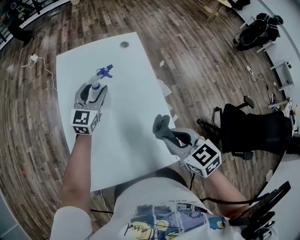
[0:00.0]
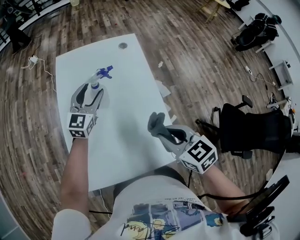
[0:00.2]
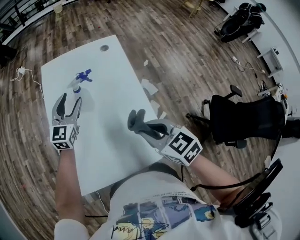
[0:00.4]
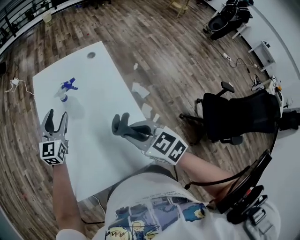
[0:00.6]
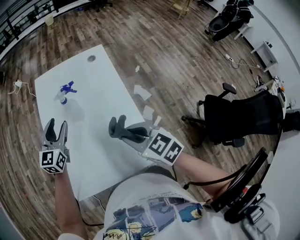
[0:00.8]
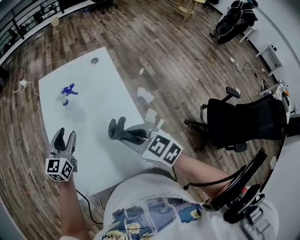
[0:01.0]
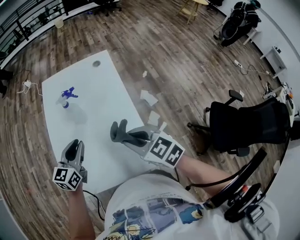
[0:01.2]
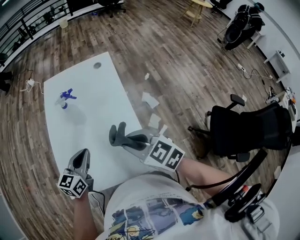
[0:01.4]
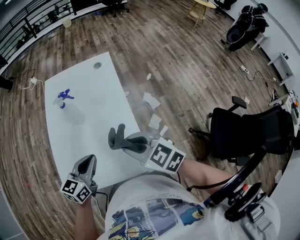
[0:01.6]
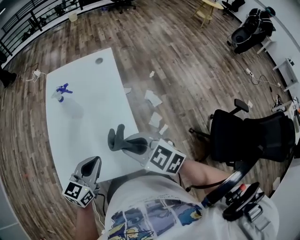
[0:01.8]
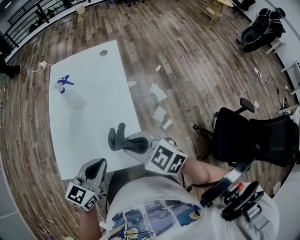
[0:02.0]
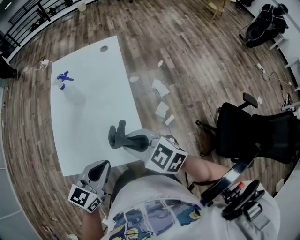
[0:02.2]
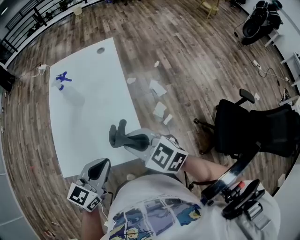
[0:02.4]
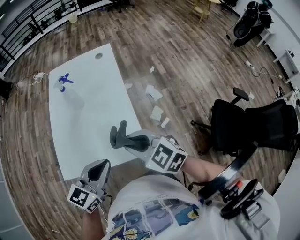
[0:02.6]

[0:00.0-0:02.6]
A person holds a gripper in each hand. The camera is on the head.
0:00.0 to 0:01.2: The left gripper goes some 20 cm backward, and closes up.
0:01.2 to 0:02.6: The right gripper heads backward, covering about 10 cm. The left gripper heads backward and to the right, covering approximately 25 cm, and closes up.

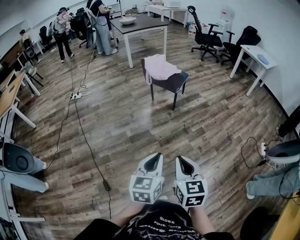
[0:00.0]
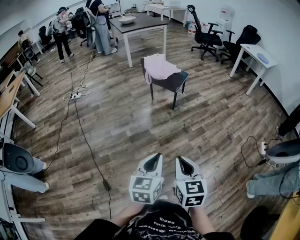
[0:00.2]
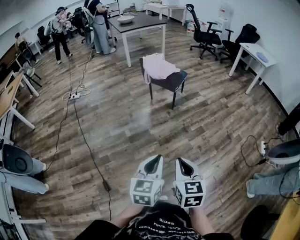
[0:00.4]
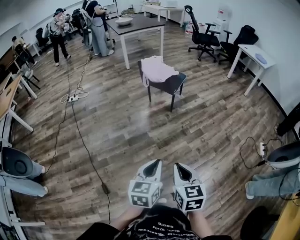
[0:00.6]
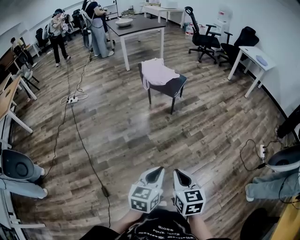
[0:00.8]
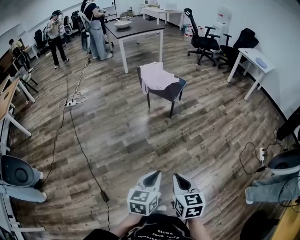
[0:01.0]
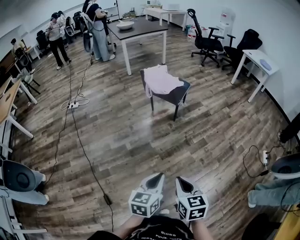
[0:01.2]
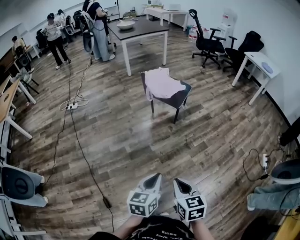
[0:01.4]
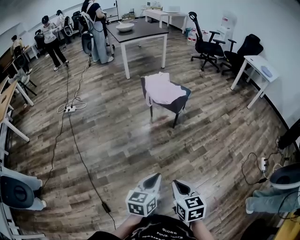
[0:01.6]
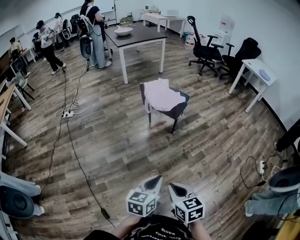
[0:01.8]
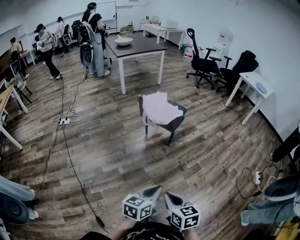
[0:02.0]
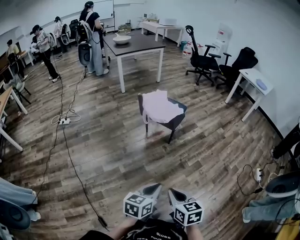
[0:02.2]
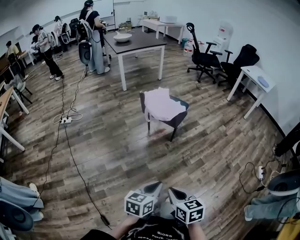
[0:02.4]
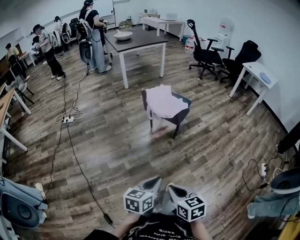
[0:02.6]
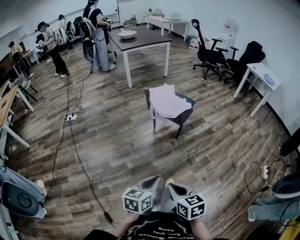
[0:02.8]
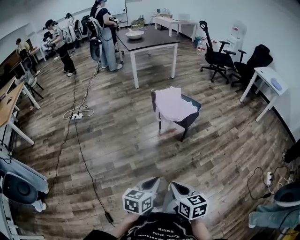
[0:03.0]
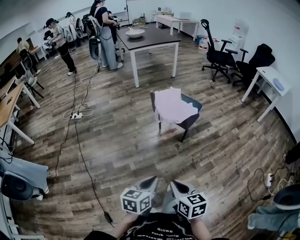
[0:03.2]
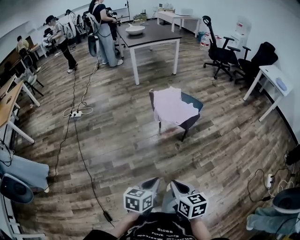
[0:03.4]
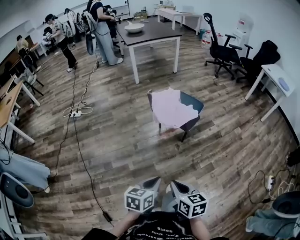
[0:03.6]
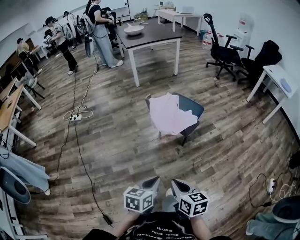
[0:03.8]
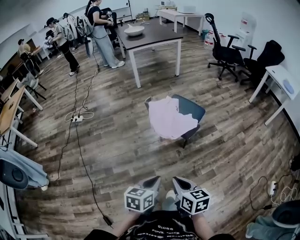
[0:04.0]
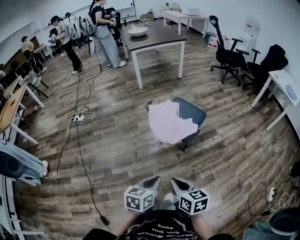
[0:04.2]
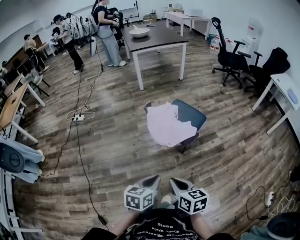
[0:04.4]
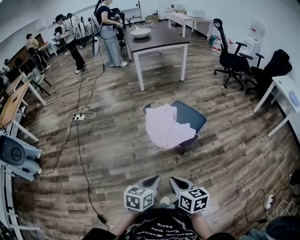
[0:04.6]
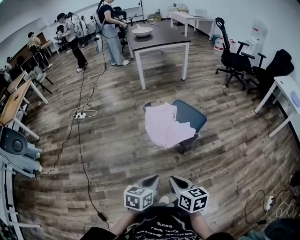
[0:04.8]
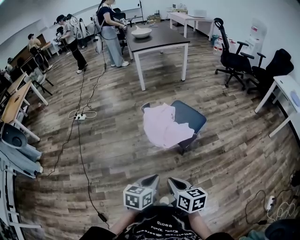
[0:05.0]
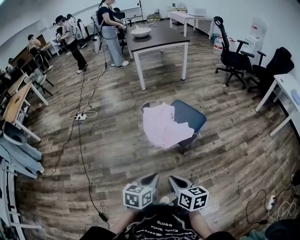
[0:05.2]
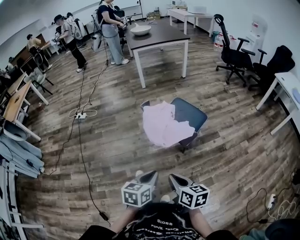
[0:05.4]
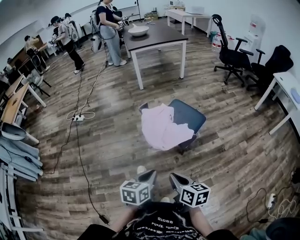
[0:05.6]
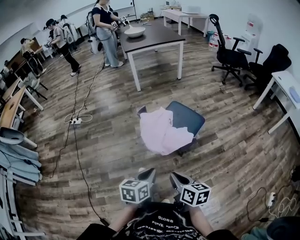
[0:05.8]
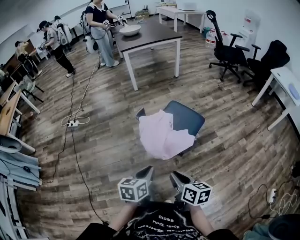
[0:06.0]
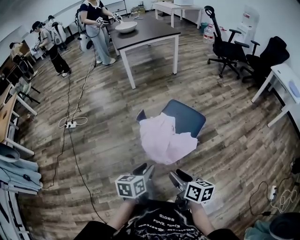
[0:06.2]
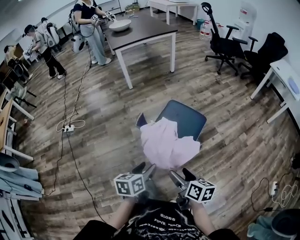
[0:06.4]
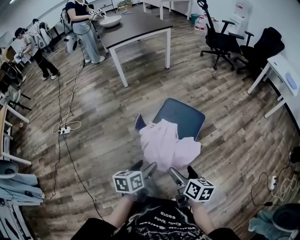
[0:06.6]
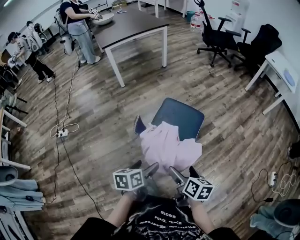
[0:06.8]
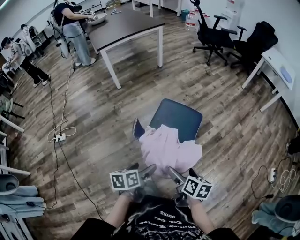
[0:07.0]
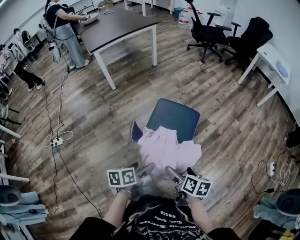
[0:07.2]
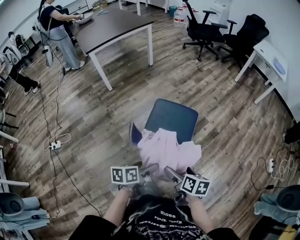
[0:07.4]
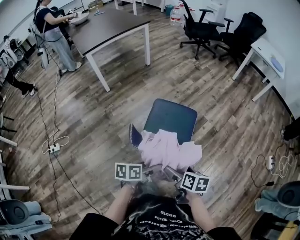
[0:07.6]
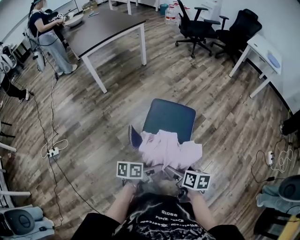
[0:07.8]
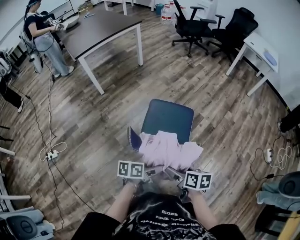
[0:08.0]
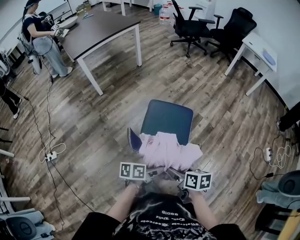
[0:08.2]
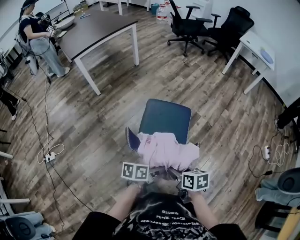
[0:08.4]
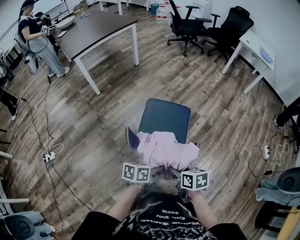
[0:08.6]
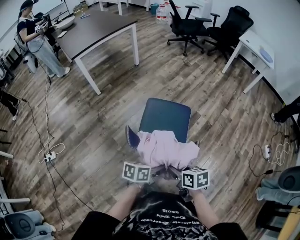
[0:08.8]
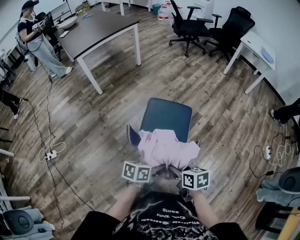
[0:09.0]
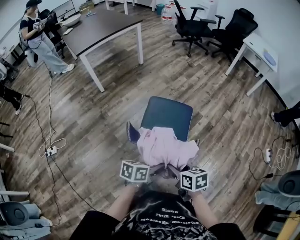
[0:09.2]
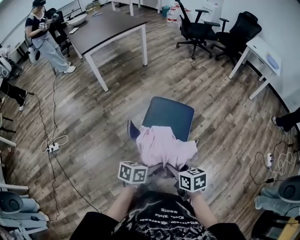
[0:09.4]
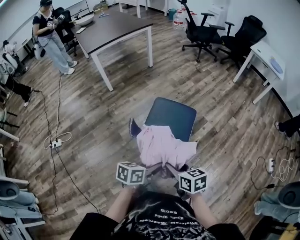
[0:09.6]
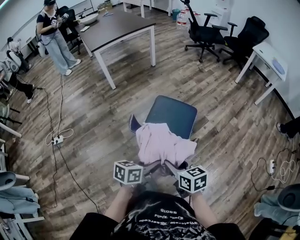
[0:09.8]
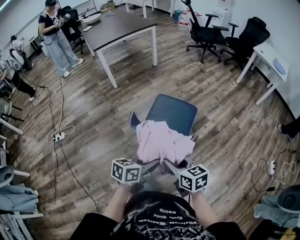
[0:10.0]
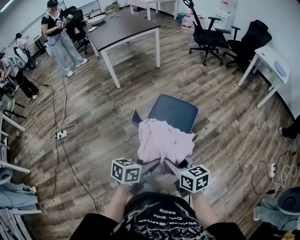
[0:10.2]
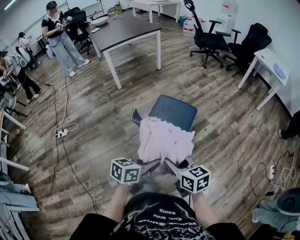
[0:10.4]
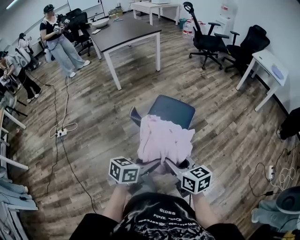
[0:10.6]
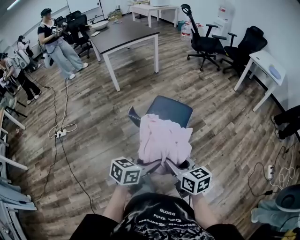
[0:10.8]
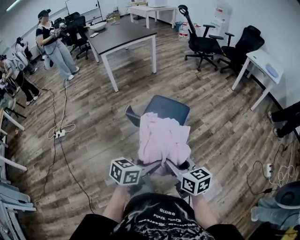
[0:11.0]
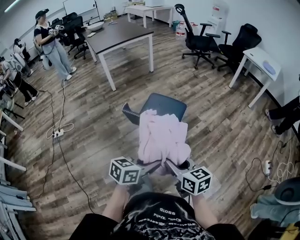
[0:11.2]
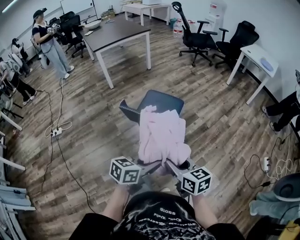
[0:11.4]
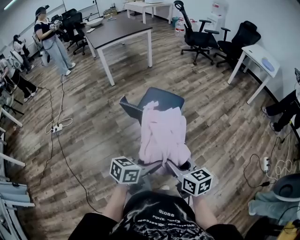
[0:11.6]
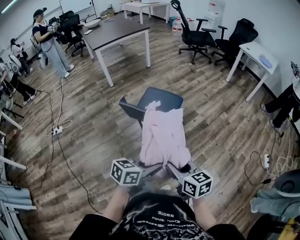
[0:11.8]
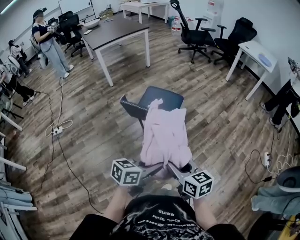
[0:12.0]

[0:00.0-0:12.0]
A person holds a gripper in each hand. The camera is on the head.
0:00.0 to 0:01.6: The right gripper travels forward and downward by approximately 15 cm. The left gripper moves forward, some 15 cm.
0:01.6 to 0:03.0: The right gripper heads forward and to the left, covering some 10 cm. Meanwhile the left gripper shifts roughly 10 cm forward.
0:03.0 to 0:04.4: Both grippers travel together forward and to the right, some 20 cm.
0:04.4 to 0:06.0: The two grippers go approximately 10 cm forward.
0:06.0 to 0:07.6: The left gripper changes place by about 20 cm, changes its angle by some 40 degrees, and opens up; the right gripper changes place by roughly 15 cm, changes its angle by some 30 degrees, and opens up.
0:07.6 to 0:09.0: The left gripper closes up; the right gripper closes up.
0:09.0 to 0:10.4: The two grippers go some 10 cm upward and backward. The right gripper changes its angle by approximately 30 degrees; the left gripper turns by roughly 20 degrees.
0:10.4 to 0:12.0: Both grippers travel together backward and to the right, some 15 cm.

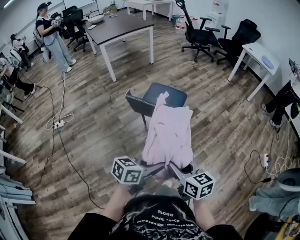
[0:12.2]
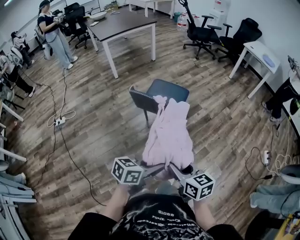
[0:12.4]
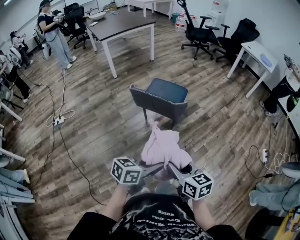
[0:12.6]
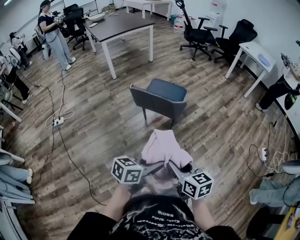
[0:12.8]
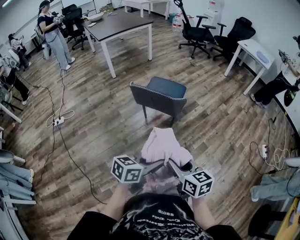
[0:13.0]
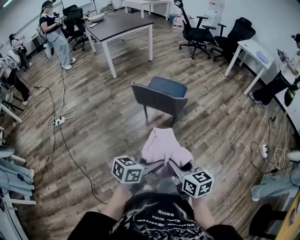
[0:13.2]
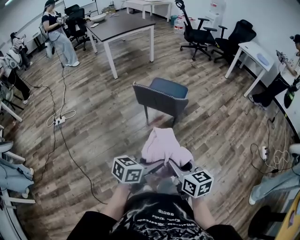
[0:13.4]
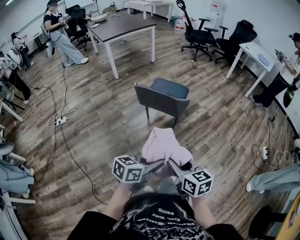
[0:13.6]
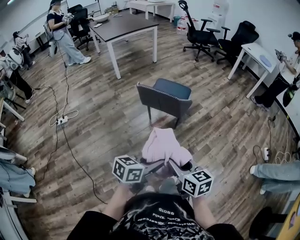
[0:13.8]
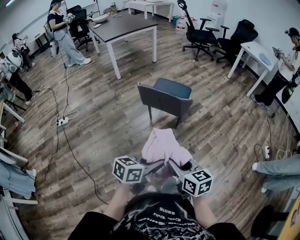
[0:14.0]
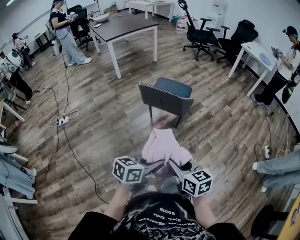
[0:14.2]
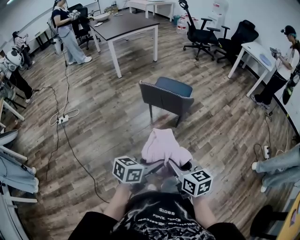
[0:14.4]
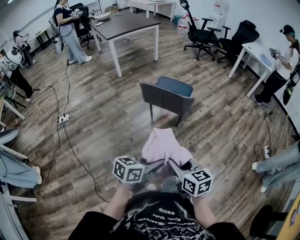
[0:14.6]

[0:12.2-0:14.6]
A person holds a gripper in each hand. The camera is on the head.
0:12.2 to 0:13.4: Both grippers travel together backward, approximately 10 cm.
0:13.4 to 0:14.6: There are only small adjustments of the grippers.

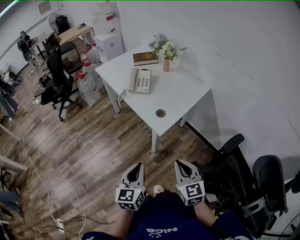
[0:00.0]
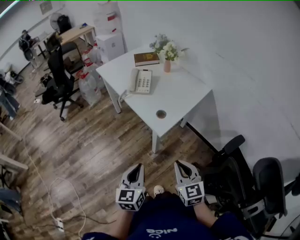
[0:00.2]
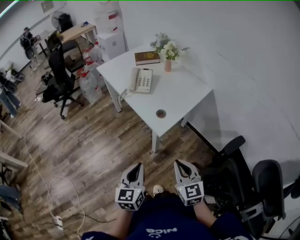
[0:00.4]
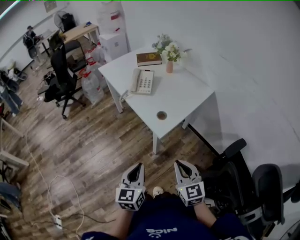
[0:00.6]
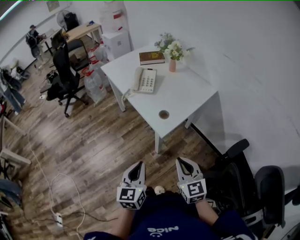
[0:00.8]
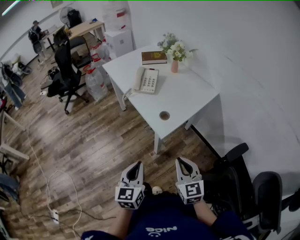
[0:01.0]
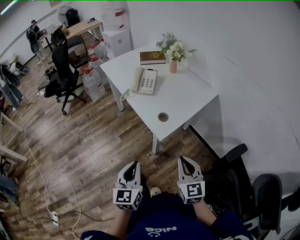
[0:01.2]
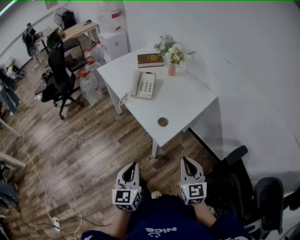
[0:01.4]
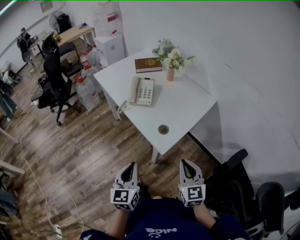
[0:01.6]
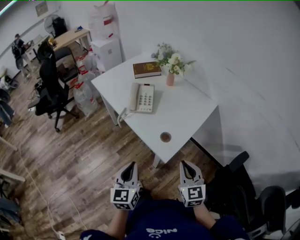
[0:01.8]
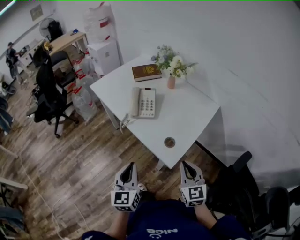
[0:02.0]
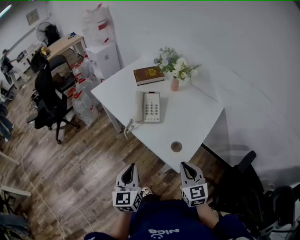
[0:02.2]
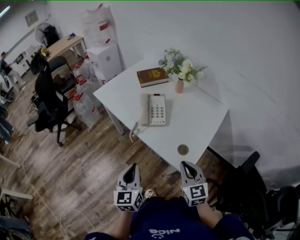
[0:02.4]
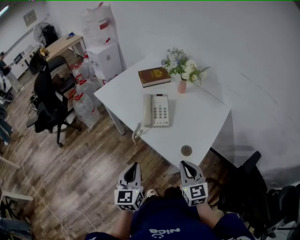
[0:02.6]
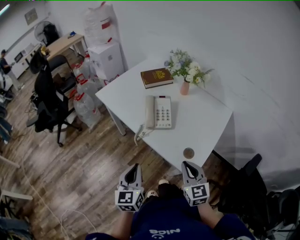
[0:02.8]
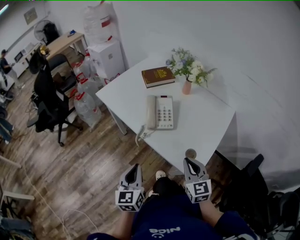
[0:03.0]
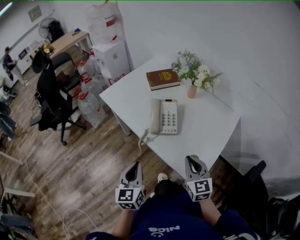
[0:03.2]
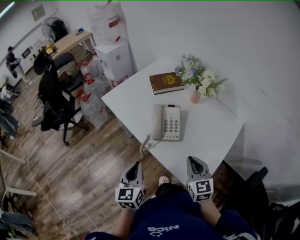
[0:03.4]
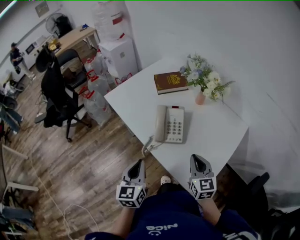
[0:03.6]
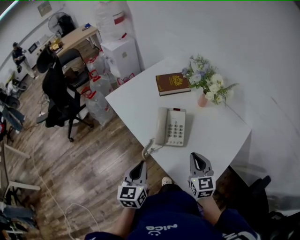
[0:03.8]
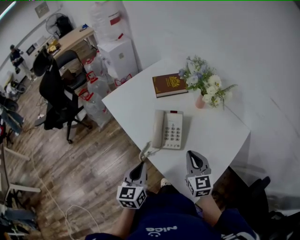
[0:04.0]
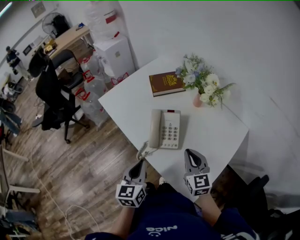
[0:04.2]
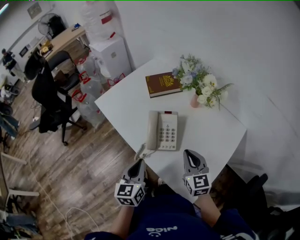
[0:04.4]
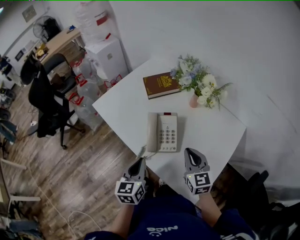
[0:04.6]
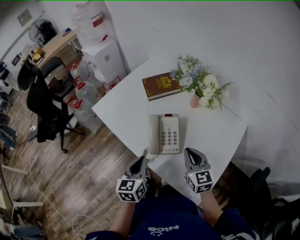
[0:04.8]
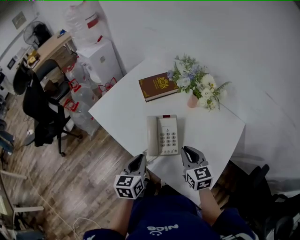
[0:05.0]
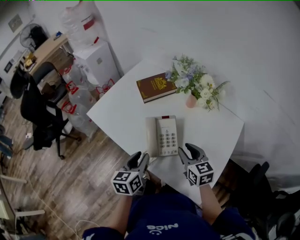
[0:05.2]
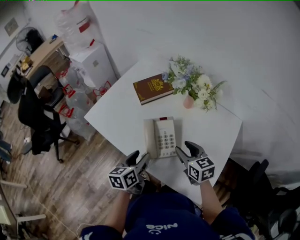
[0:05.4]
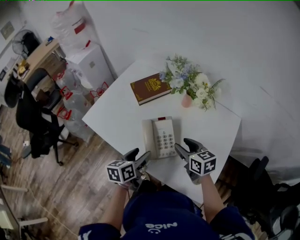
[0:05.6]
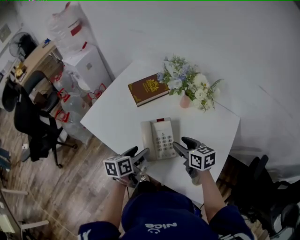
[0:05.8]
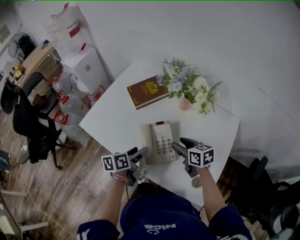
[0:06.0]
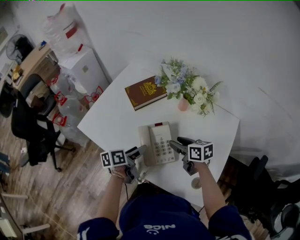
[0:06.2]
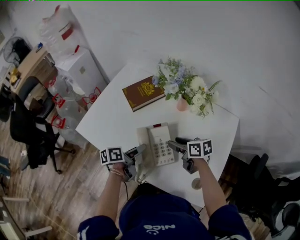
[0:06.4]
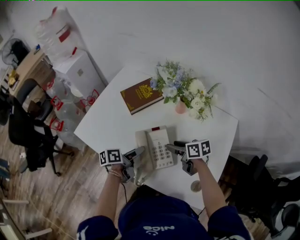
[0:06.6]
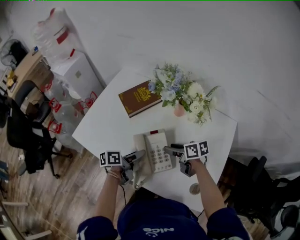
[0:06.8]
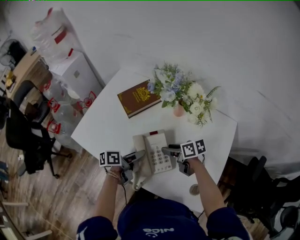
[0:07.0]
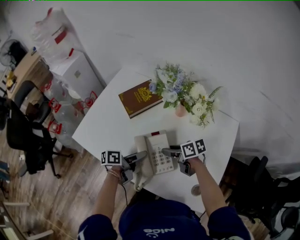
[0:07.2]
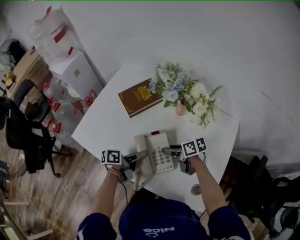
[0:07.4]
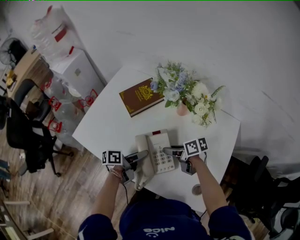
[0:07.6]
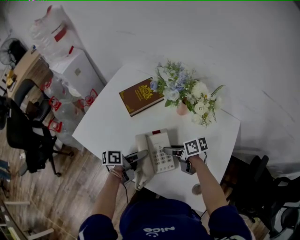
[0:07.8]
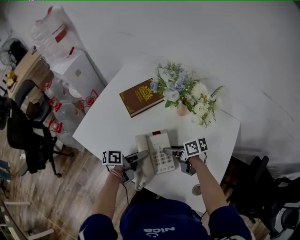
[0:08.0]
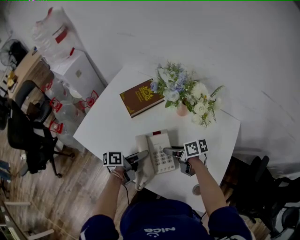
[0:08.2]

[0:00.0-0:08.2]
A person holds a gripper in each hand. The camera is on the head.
0:00.0 to 0:01.6: Both grippers move forward, some 10 cm.
0:01.6 to 0:03.2: Both grippers travel together forward and to the left, approximately 25 cm.
0:03.2 to 0:05.0: The grippers both shift forward by some 20 cm.
0:05.0 to 0:06.6: The grippers both shift forward and downward by approximately 15 cm. The right gripper changes its angle by some 40 degrees, and opens up; the left gripper swivels roughly 50 degrees, and opens.
0:06.6 to 0:08.2: There are only small adjustments of the grippers.
